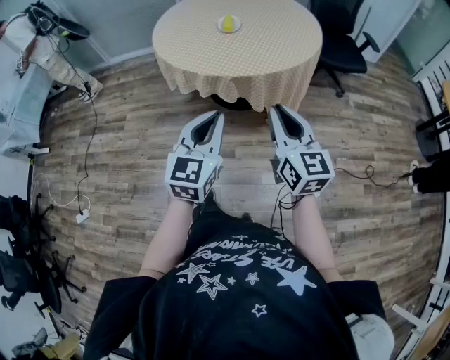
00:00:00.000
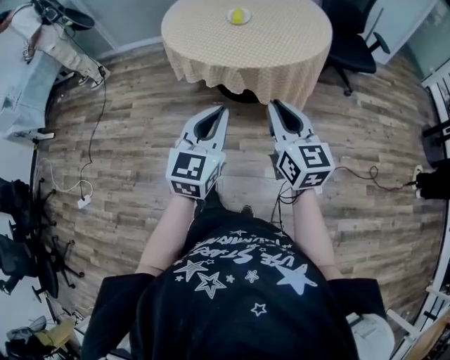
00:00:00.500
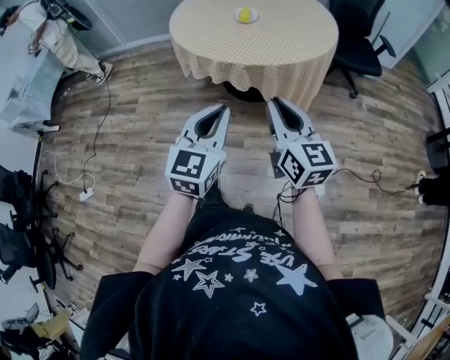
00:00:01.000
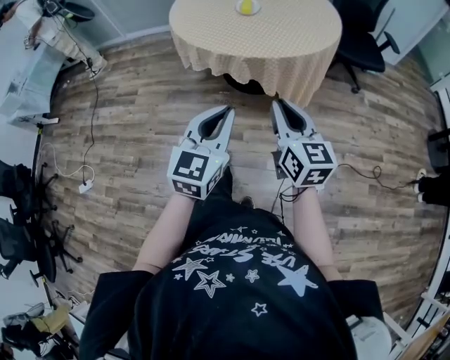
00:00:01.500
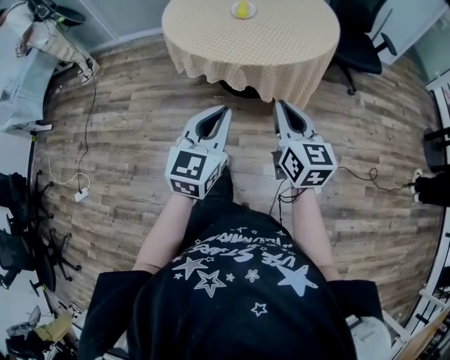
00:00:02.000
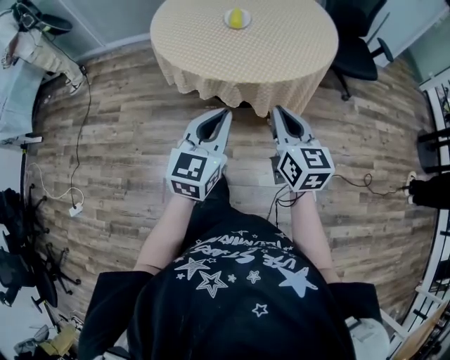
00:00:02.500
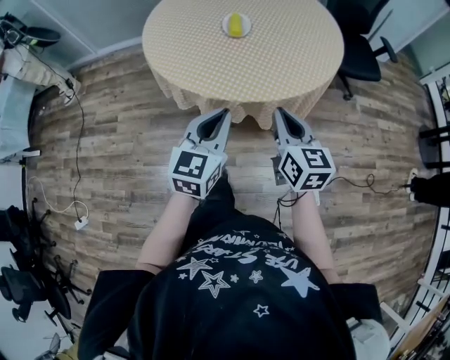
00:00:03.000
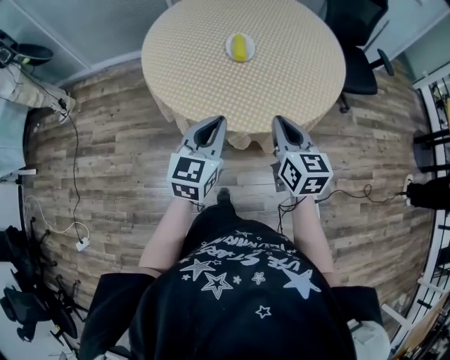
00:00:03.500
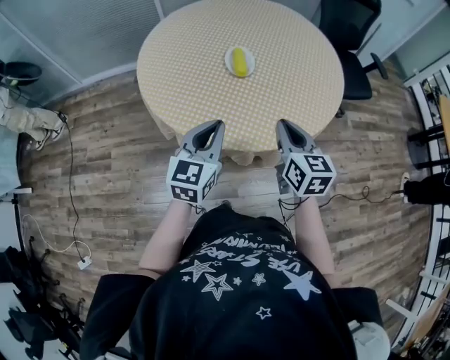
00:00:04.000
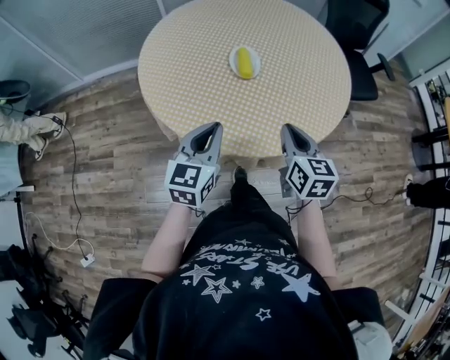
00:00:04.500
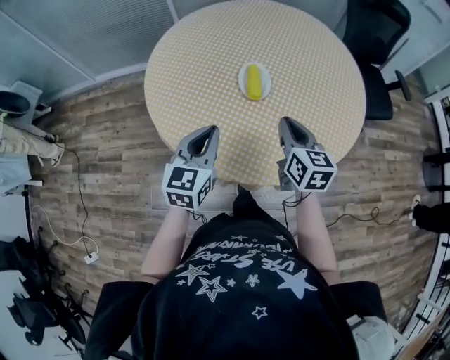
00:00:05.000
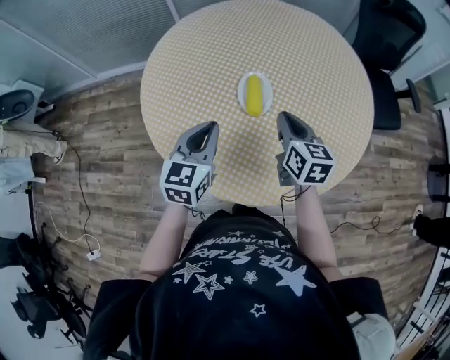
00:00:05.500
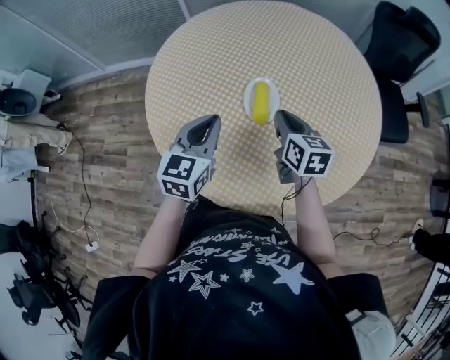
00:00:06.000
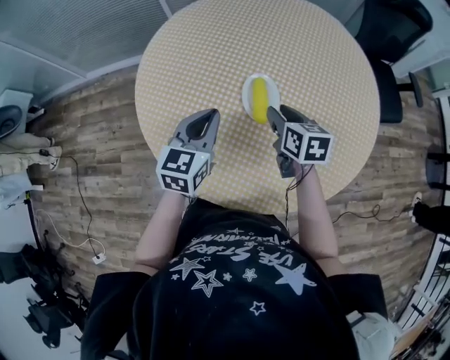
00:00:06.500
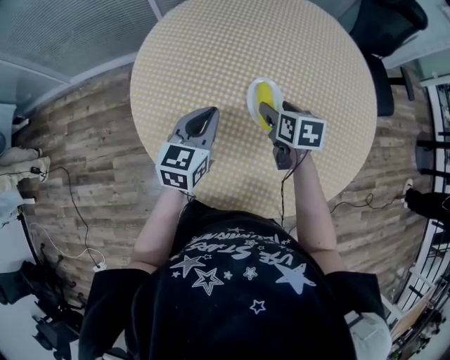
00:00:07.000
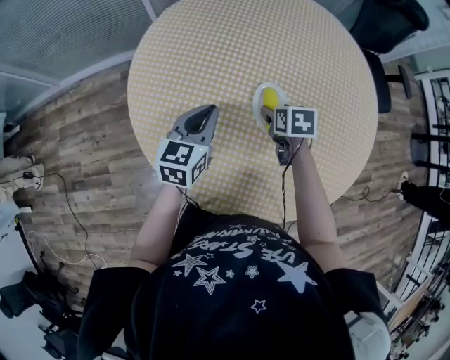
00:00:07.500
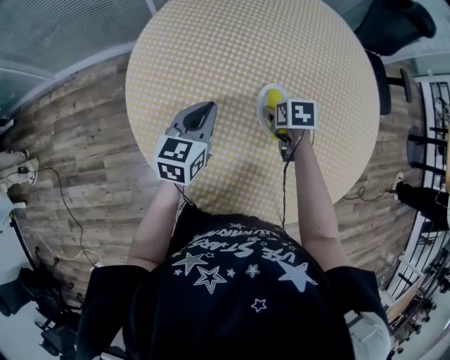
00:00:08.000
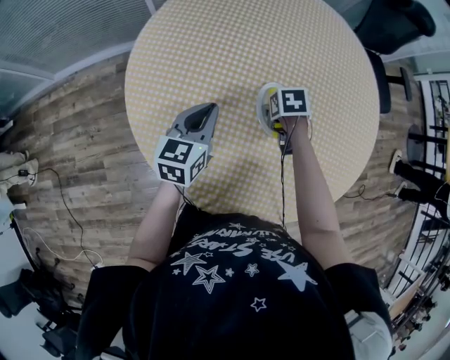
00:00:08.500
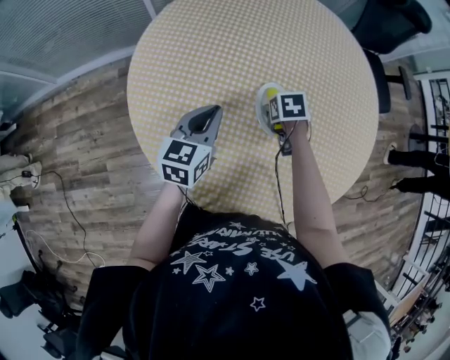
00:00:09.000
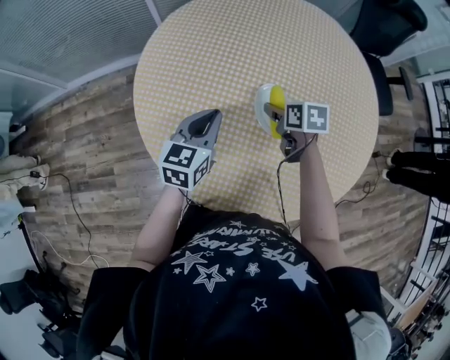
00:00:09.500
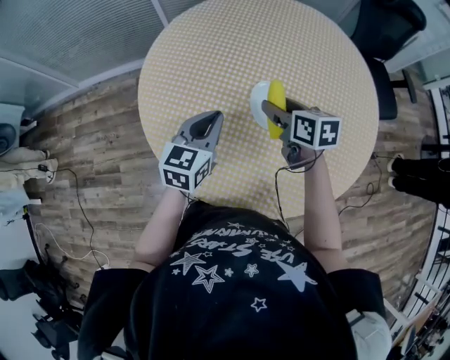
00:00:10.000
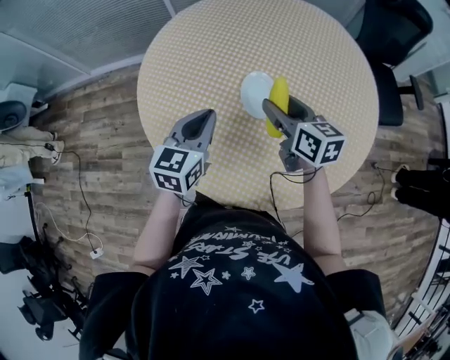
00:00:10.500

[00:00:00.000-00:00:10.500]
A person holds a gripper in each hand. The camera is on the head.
00:00:00.000 to 00:00:02.000: The grippers move only a little.
00:00:02.000 to 00:00:04.000: Both grippers move forward, approximately 30 cm.
00:00:04.000 to 00:00:06.500: Both grippers move forward, approximately 25 cm. The right gripper swivels approximately 20 degrees, and opens its fingers.
00:00:06.500 to 00:00:08.500: The left gripper changes place by some 15 cm. The right gripper moves downward, some 10 cm, points its fingers approximately 40 degrees further downward, and opens.
00:00:08.500 to 00:00:10.500: The left gripper changes place by approximately 15 cm, while the right gripper shifts approximately 20 cm upward, and points its fingers some 60 degrees further upward.

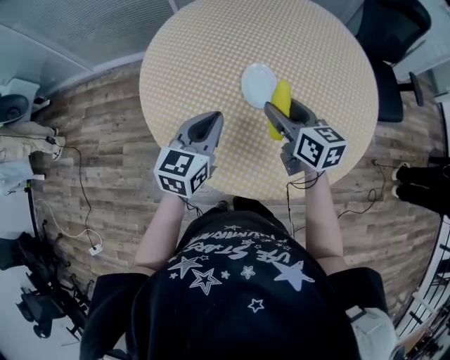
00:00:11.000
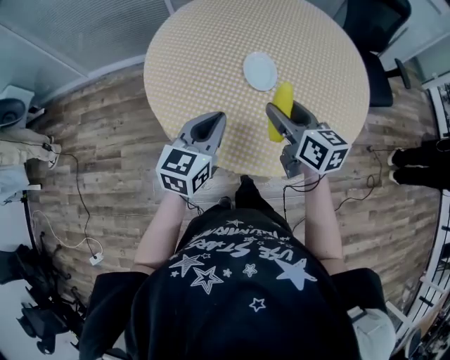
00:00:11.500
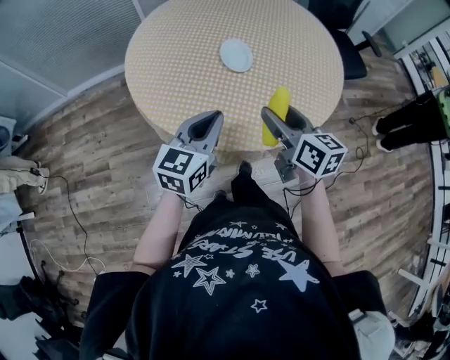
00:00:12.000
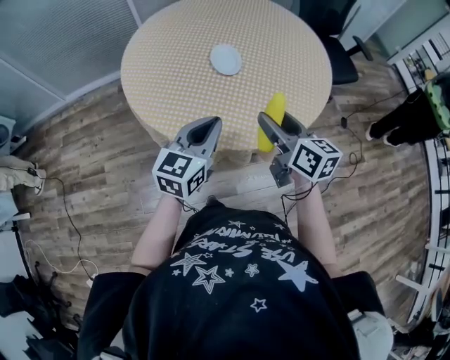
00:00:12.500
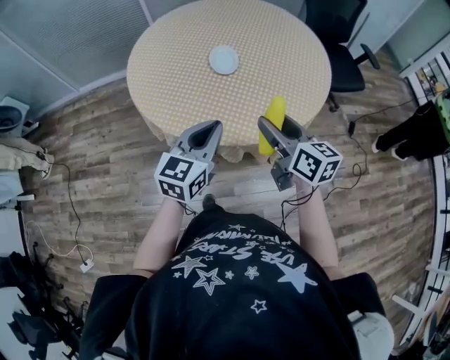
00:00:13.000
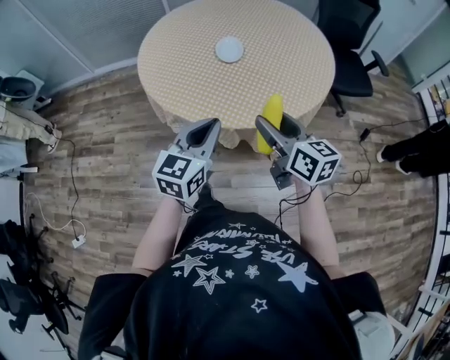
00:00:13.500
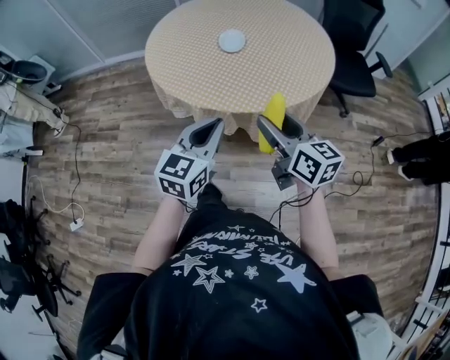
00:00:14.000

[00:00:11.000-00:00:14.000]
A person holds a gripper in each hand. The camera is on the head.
00:00:11.000 to 00:00:12.500: The two grippers go about 20 cm backward.
00:00:12.500 to 00:00:14.000: Both grippers travel together backward and to the right, about 20 cm.

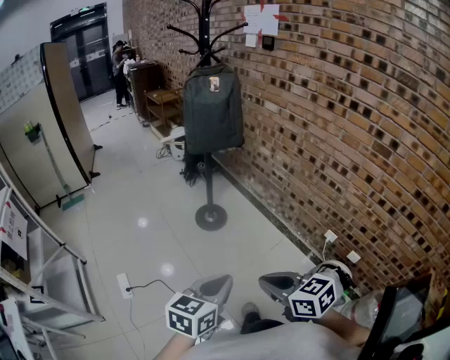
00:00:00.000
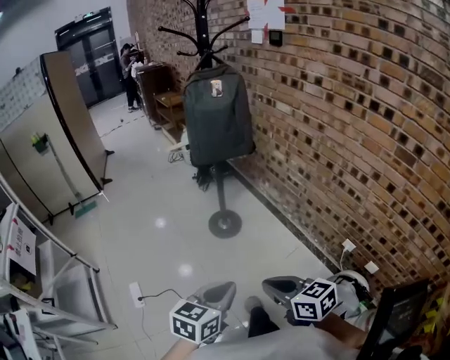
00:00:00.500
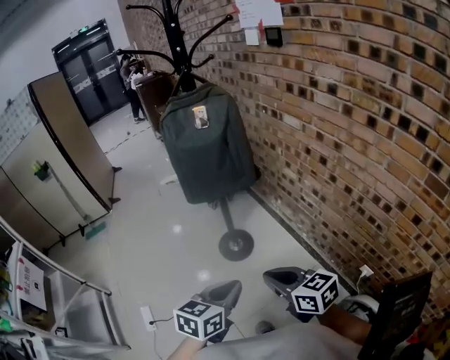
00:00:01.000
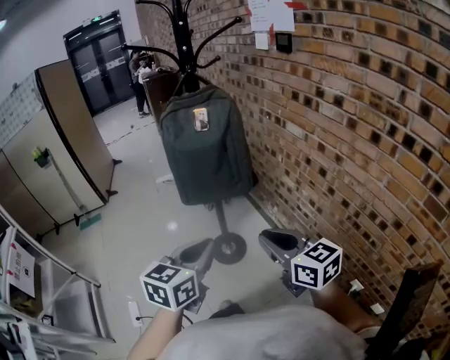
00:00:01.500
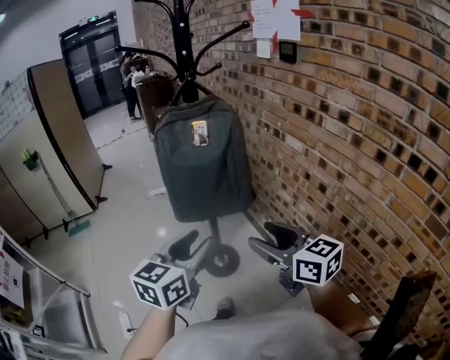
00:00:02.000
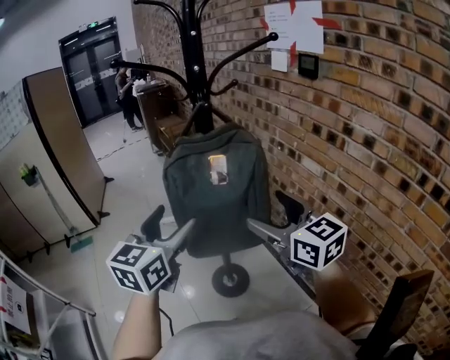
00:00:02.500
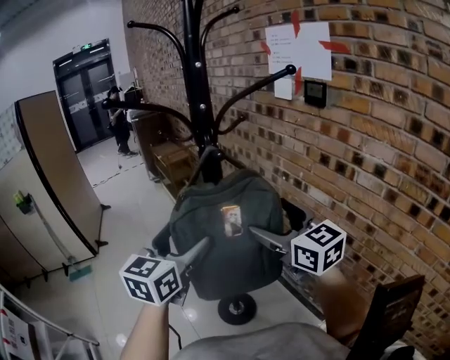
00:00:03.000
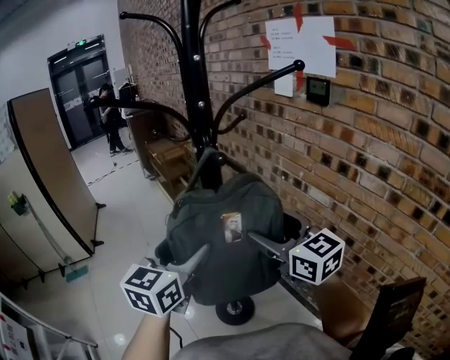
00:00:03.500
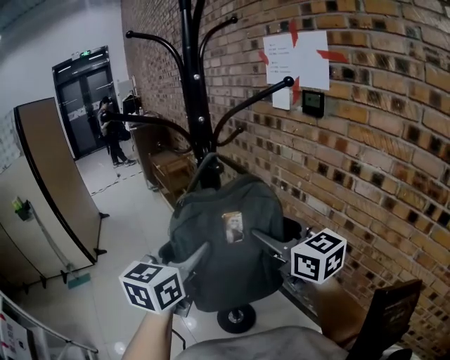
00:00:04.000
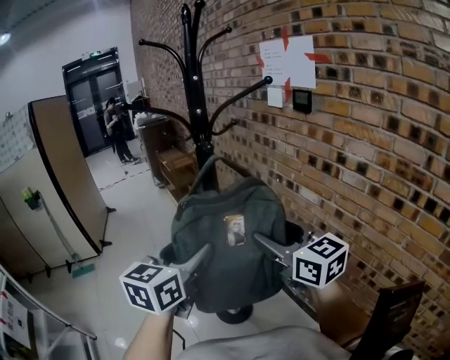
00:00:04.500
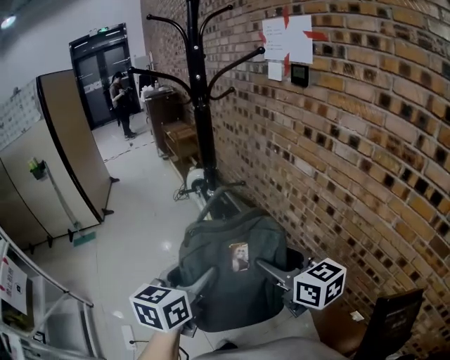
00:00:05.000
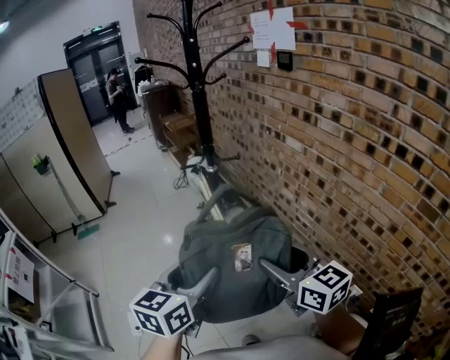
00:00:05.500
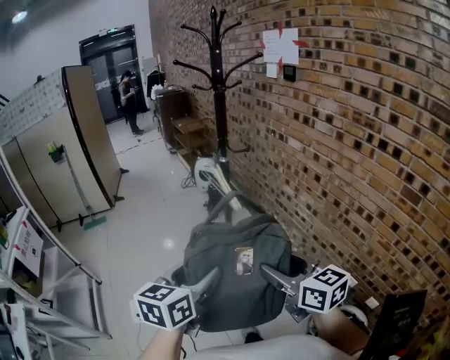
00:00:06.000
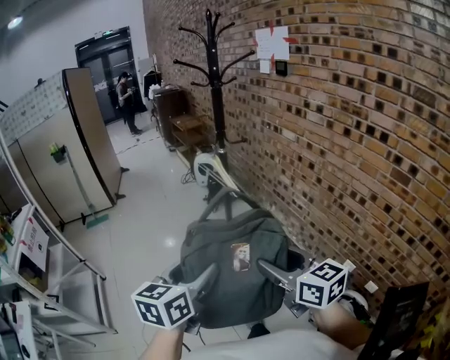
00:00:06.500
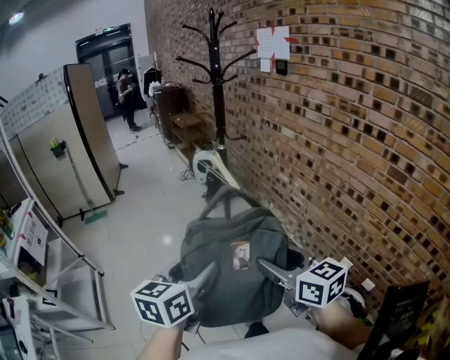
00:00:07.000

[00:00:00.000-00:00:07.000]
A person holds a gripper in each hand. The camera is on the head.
00:00:00.000 to 00:00:02.000: The pair of grippers is taken forward, about 50 cm. The right gripper opens, while the left gripper opens.
00:00:02.000 to 00:00:03.500: Both grippers travel together forward, about 25 cm. The left gripper opens up.
00:00:03.500 to 00:00:05.000: Both grippers move backward, some 25 cm.
00:00:05.000 to 00:00:07.000: Both grippers move backward, roughly 35 cm.

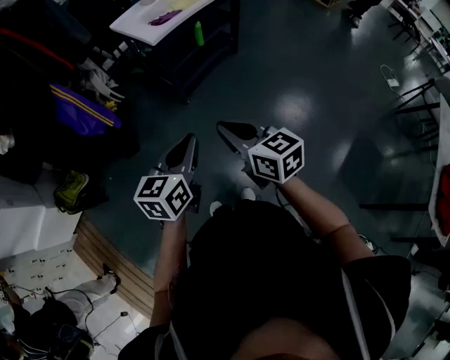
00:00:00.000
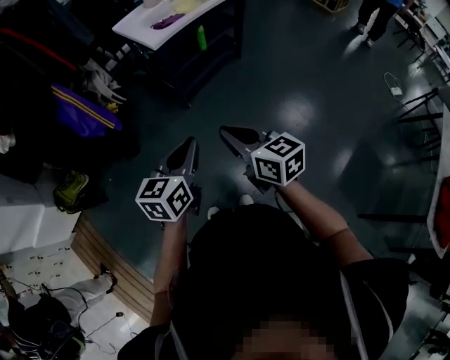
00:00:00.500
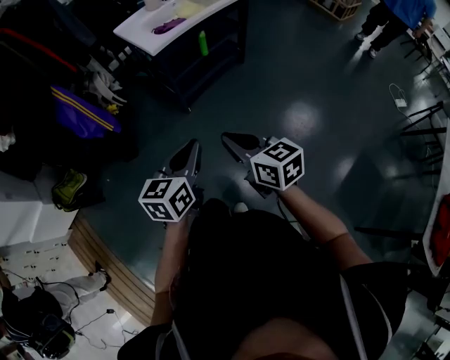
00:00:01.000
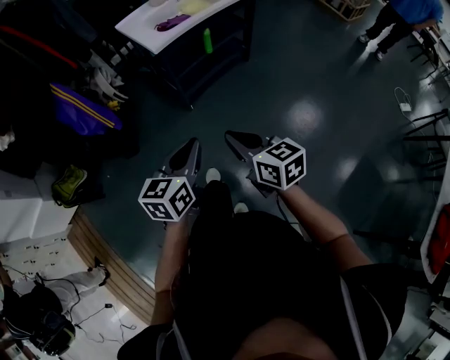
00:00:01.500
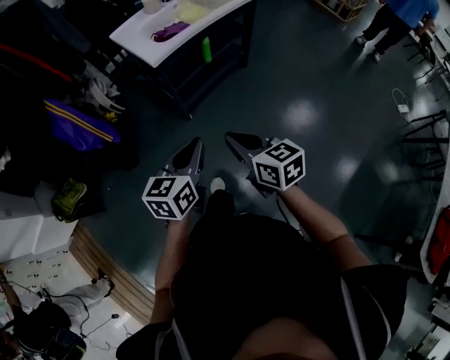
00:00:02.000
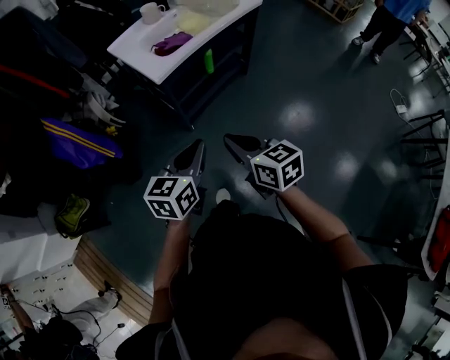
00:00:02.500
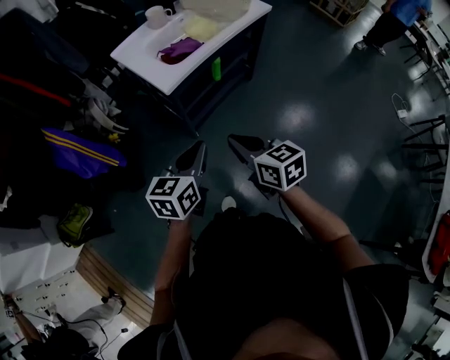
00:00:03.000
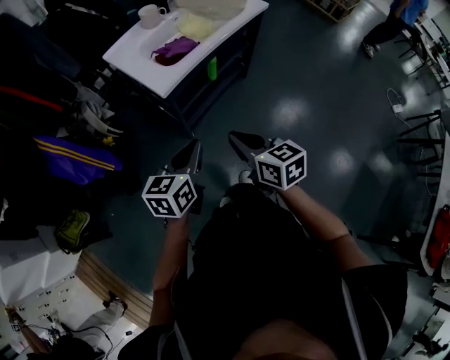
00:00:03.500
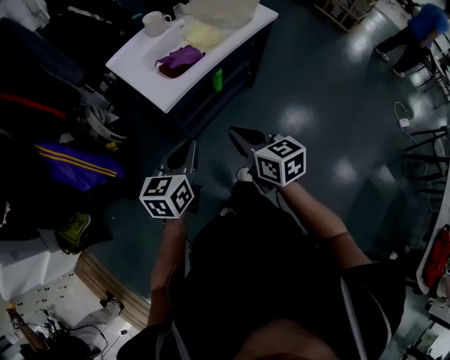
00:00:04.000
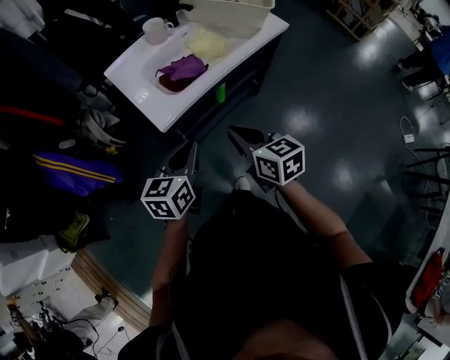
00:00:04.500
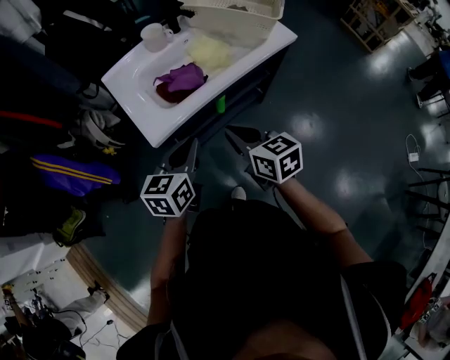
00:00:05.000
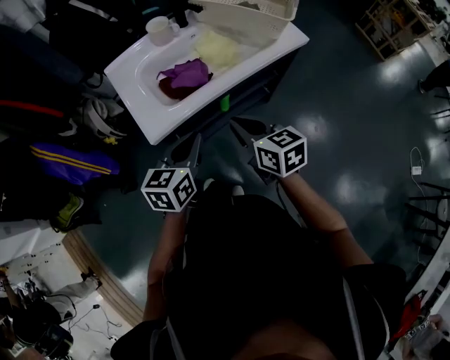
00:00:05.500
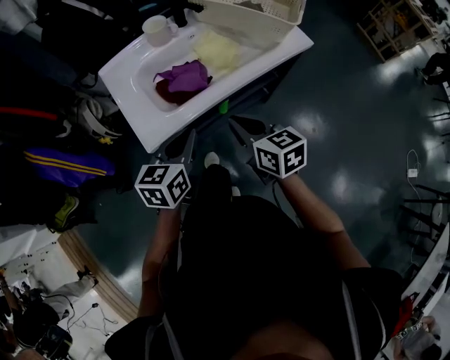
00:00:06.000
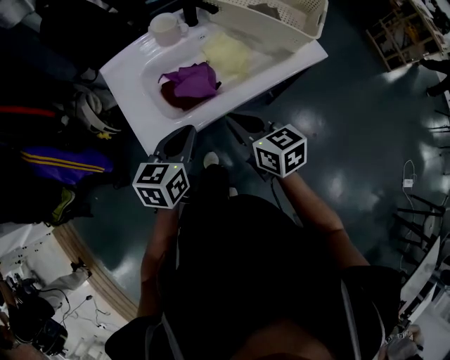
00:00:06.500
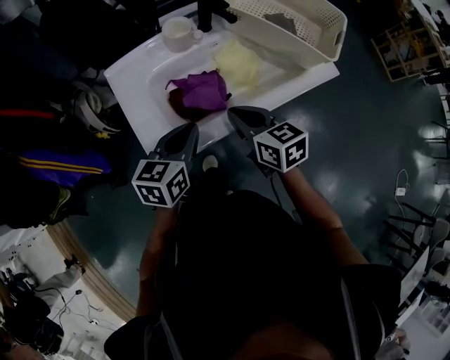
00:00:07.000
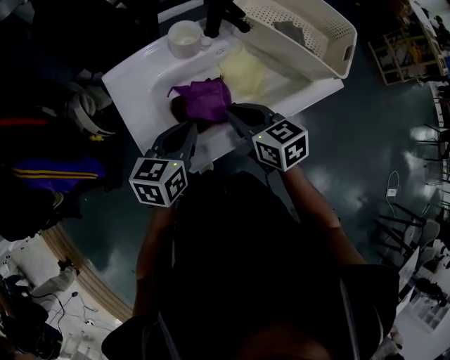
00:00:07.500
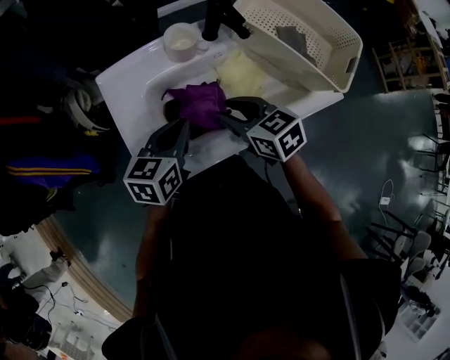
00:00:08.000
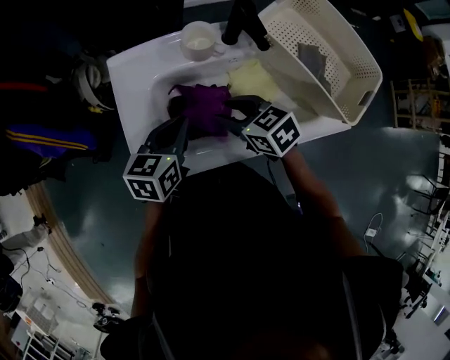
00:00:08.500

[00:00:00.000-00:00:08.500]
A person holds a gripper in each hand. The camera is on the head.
00:00:00.000 to 00:00:02.000: The right gripper shifts some 10 cm forward, downward and to the right; the left gripper moves forward and to the right, some 10 cm.
00:00:02.000 to 00:00:04.000: Both grippers travel together forward, approximately 20 cm.
00:00:04.000 to 00:00:06.500: Both grippers move forward, approximately 25 cm.
00:00:06.500 to 00:00:08.500: The two grippers go roughly 15 cm forward. The right gripper turns by about 40 degrees, and opens its fingers.
